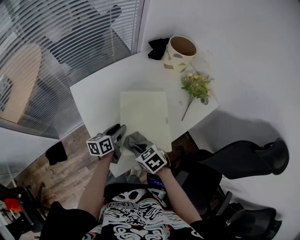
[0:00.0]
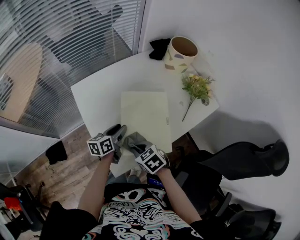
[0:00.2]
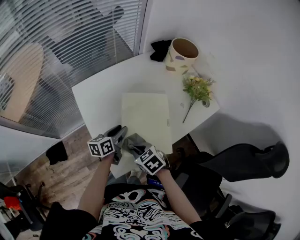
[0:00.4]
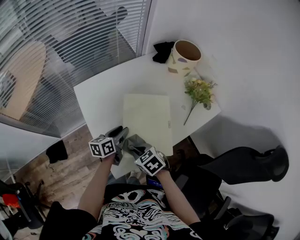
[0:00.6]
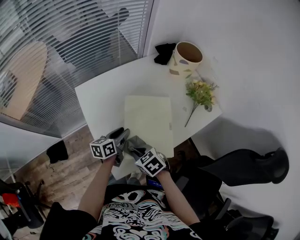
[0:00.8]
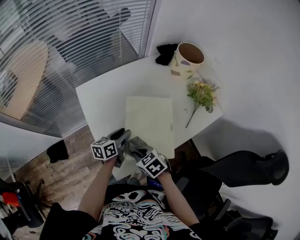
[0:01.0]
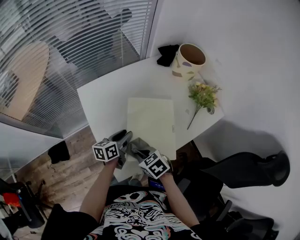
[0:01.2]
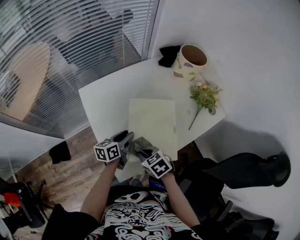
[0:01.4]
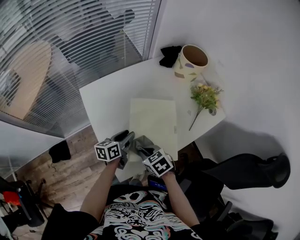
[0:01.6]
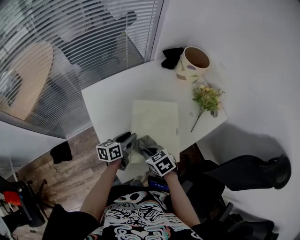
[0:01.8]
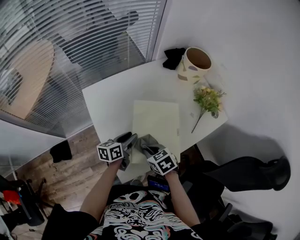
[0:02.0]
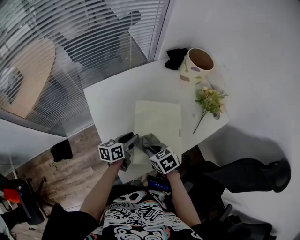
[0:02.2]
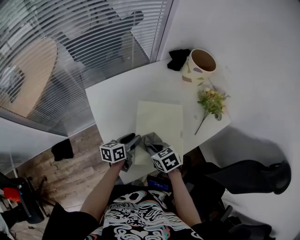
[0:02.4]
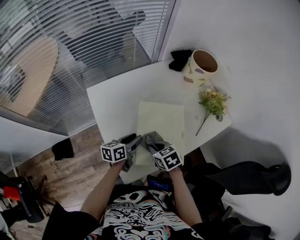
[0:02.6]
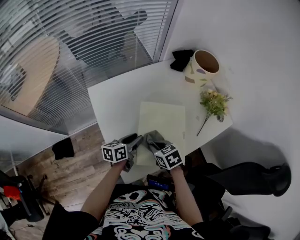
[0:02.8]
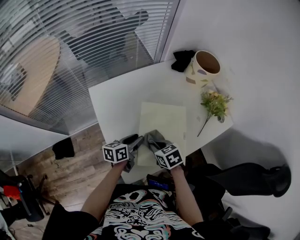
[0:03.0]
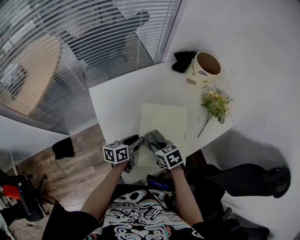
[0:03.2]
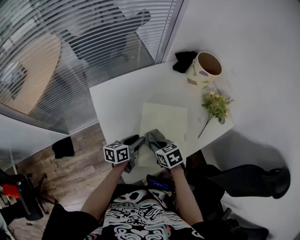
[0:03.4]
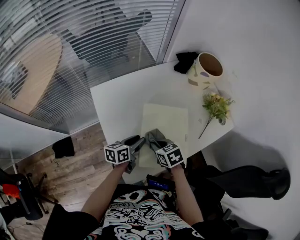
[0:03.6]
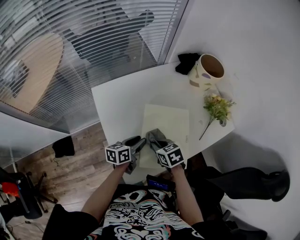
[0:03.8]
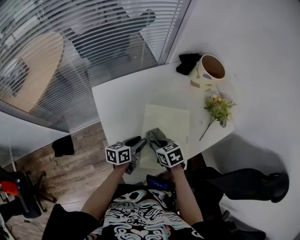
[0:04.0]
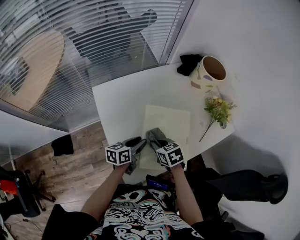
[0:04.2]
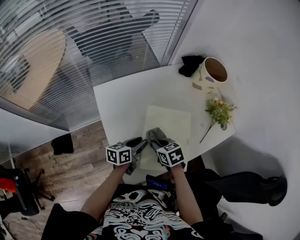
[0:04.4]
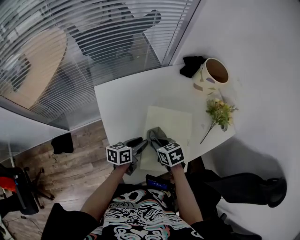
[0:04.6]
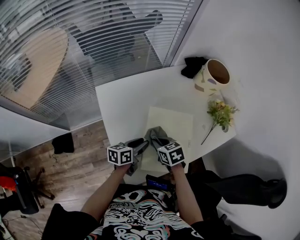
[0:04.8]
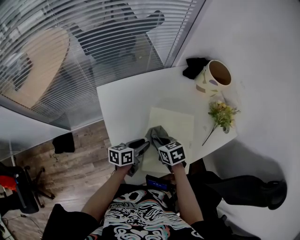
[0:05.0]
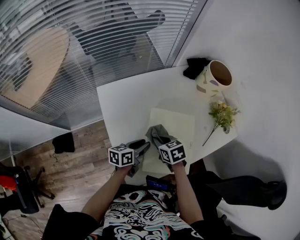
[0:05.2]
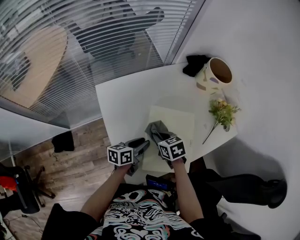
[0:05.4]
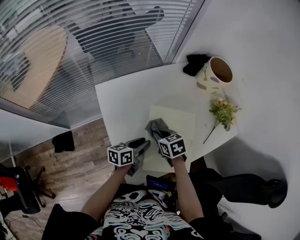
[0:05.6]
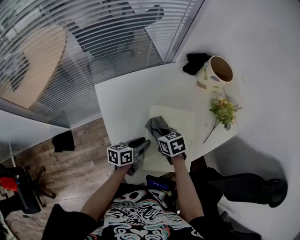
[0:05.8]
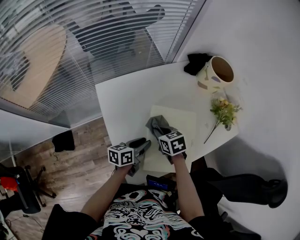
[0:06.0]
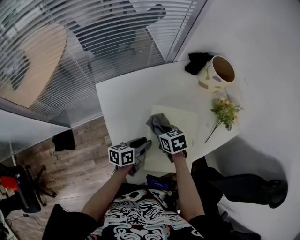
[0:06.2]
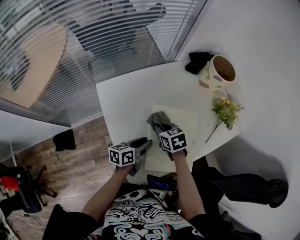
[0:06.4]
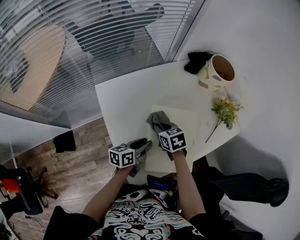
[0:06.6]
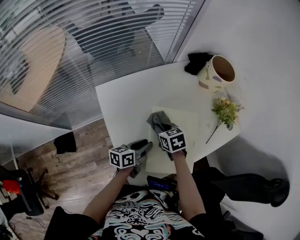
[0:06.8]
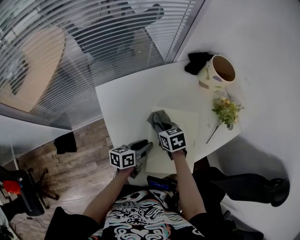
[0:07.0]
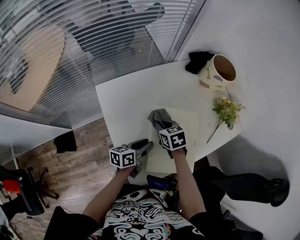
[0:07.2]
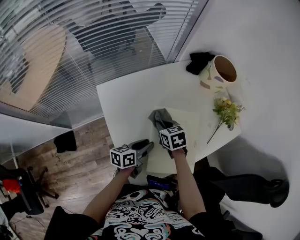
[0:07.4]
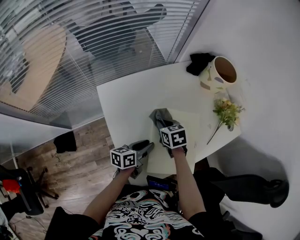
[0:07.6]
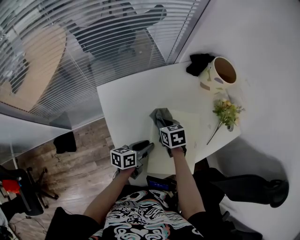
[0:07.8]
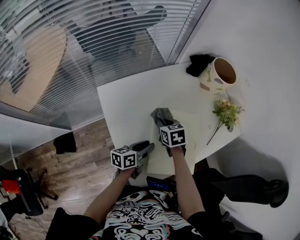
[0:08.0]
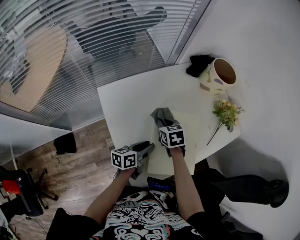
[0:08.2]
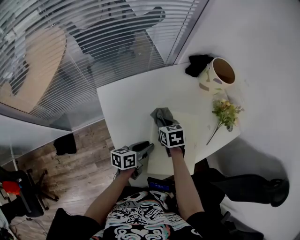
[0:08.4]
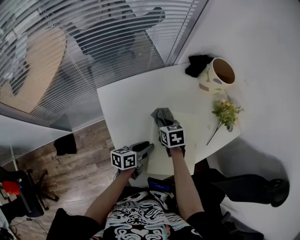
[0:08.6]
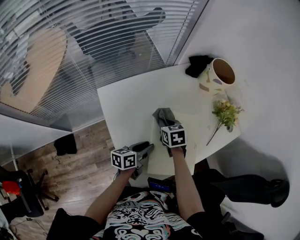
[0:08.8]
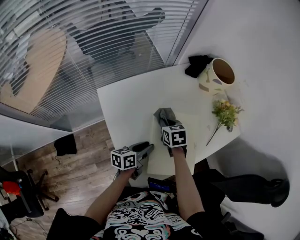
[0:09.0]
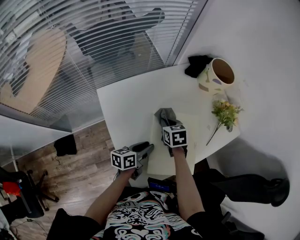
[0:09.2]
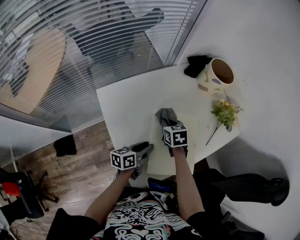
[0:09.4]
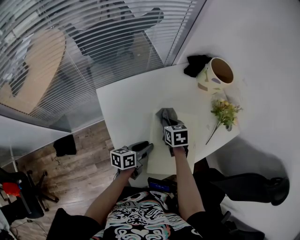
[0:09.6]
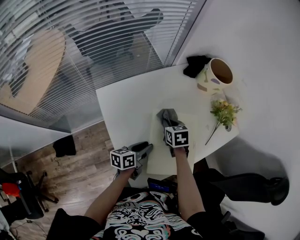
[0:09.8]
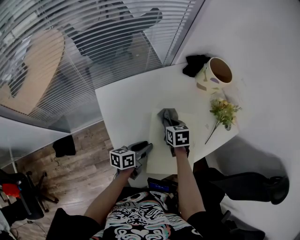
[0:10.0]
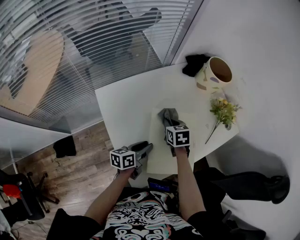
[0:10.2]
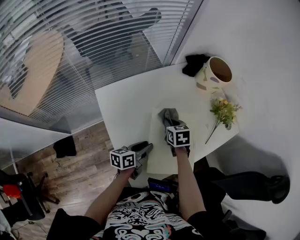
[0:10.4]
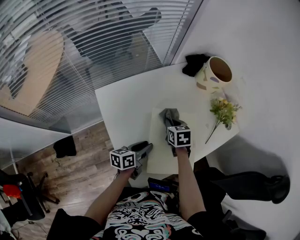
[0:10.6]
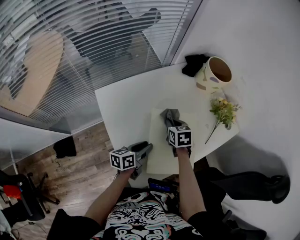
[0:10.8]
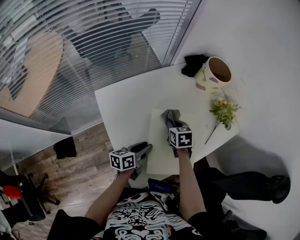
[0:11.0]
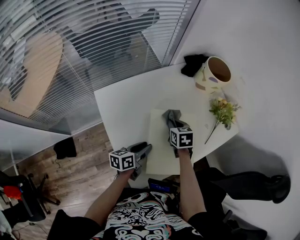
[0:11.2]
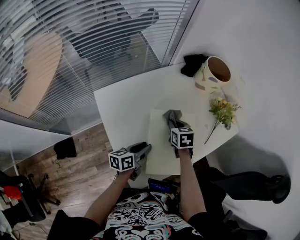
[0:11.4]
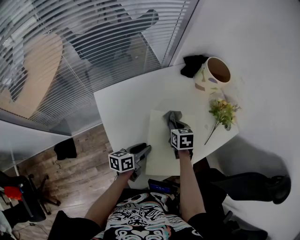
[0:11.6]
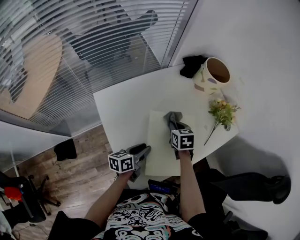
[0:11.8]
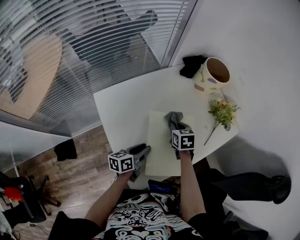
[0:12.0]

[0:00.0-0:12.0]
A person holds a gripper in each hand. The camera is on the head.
0:00.0 to 0:01.6: There are only small adjustments of the grippers.
0:01.6 to 0:03.0: The right gripper moves forward, about 5 cm.
0:03.0 to 0:04.4: There are only small adjustments of the grippers.
0:04.4 to 0:06.0: The right gripper moves forward, some 5 cm.
0:06.0 to 0:07.6: There are only small adjustments of the grippers.
0:07.6 to 0:10.4: The grippers make only small movements.
0:10.4 to 0:12.0: The grippers move only a little.

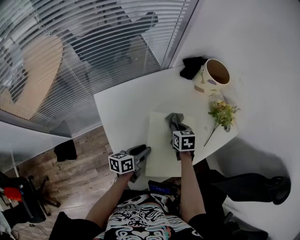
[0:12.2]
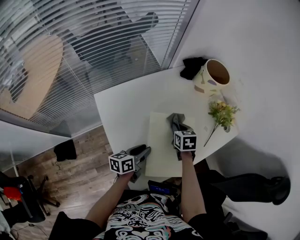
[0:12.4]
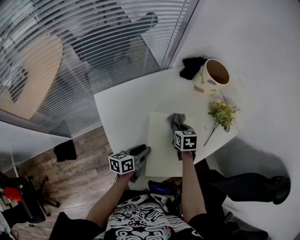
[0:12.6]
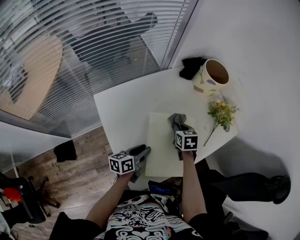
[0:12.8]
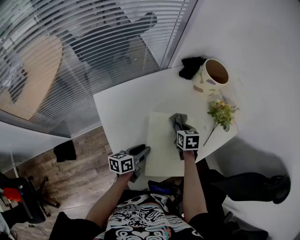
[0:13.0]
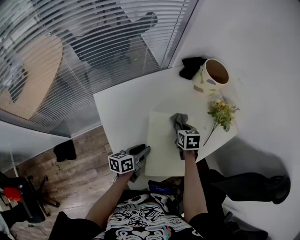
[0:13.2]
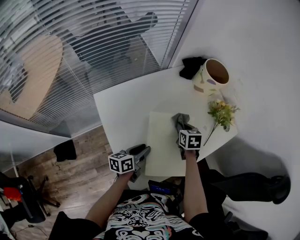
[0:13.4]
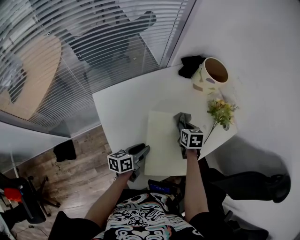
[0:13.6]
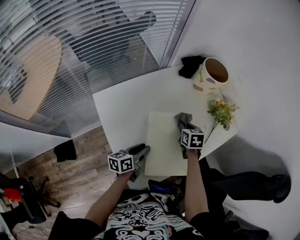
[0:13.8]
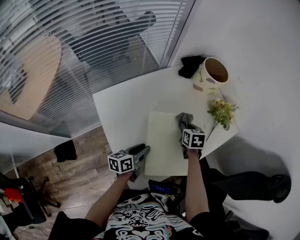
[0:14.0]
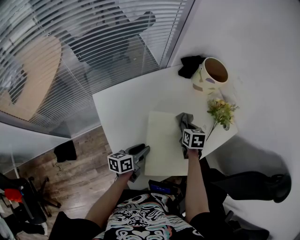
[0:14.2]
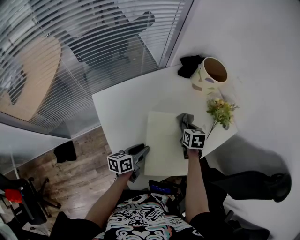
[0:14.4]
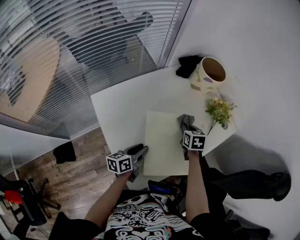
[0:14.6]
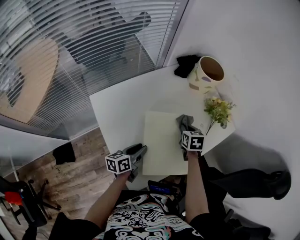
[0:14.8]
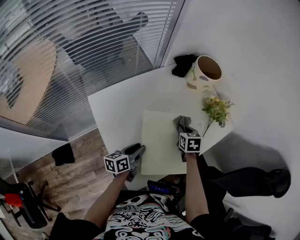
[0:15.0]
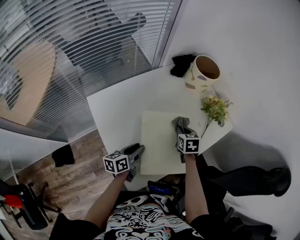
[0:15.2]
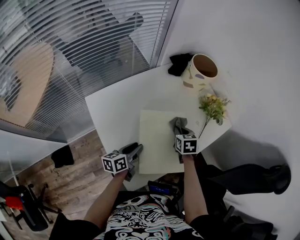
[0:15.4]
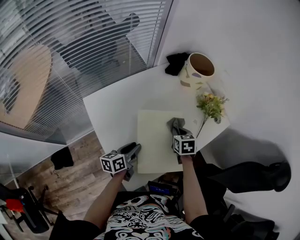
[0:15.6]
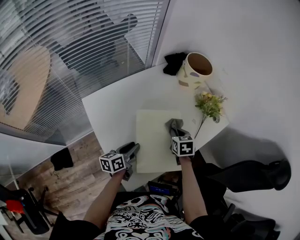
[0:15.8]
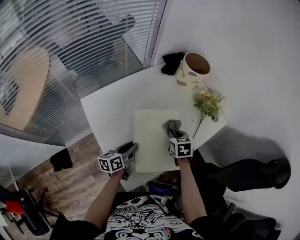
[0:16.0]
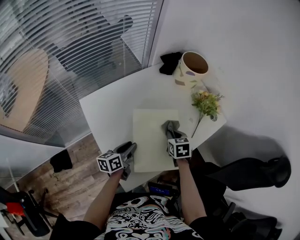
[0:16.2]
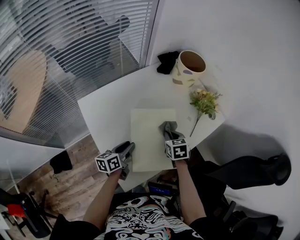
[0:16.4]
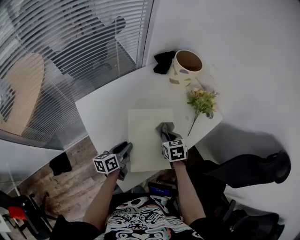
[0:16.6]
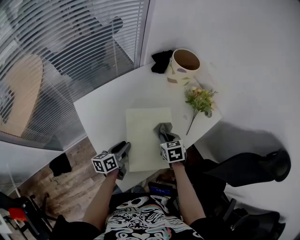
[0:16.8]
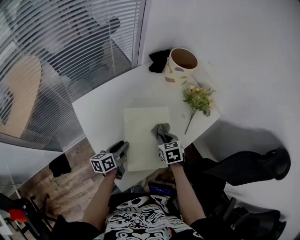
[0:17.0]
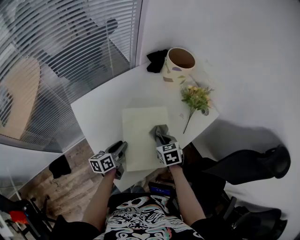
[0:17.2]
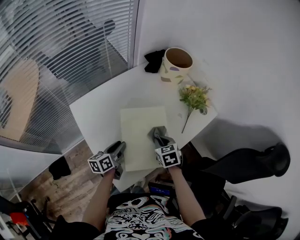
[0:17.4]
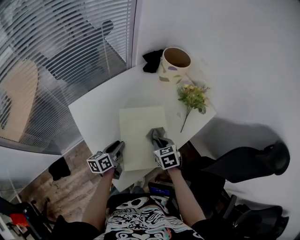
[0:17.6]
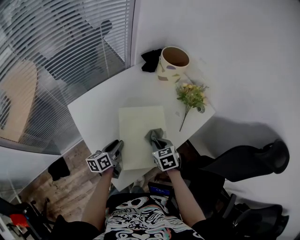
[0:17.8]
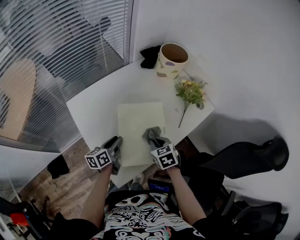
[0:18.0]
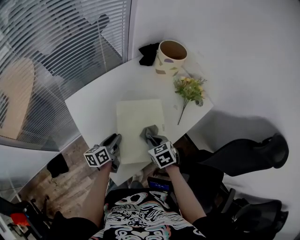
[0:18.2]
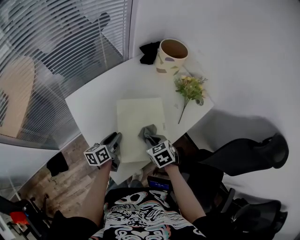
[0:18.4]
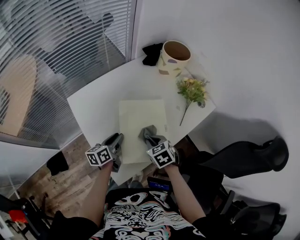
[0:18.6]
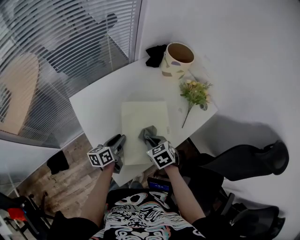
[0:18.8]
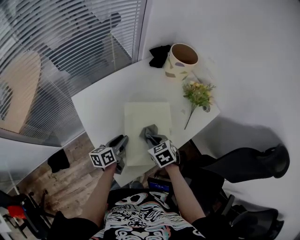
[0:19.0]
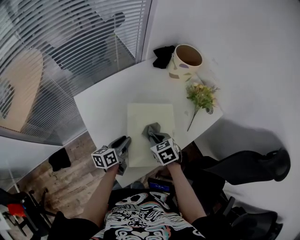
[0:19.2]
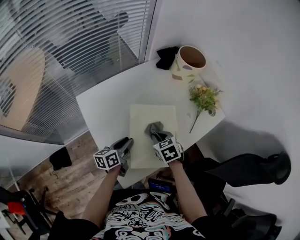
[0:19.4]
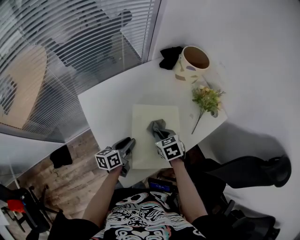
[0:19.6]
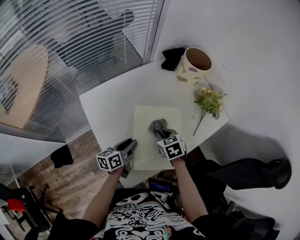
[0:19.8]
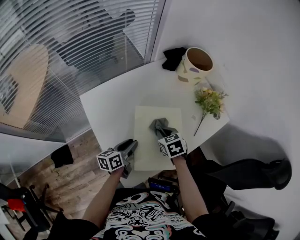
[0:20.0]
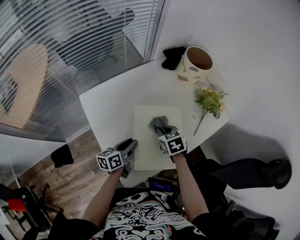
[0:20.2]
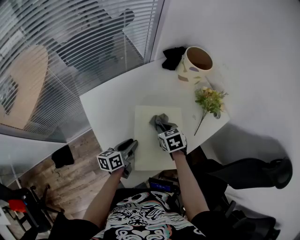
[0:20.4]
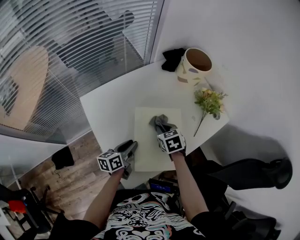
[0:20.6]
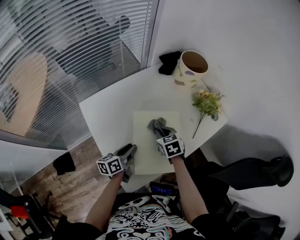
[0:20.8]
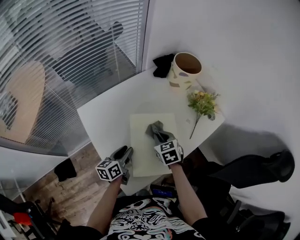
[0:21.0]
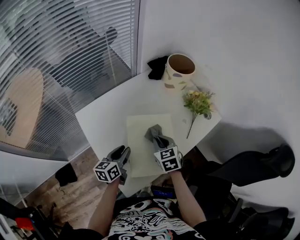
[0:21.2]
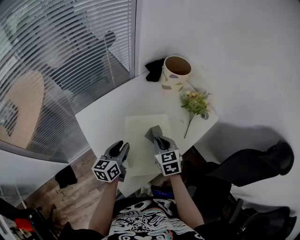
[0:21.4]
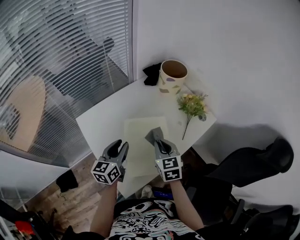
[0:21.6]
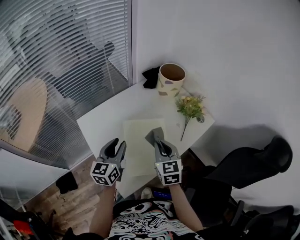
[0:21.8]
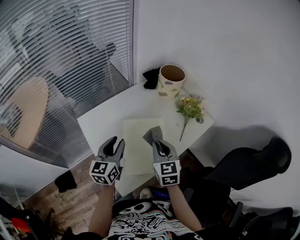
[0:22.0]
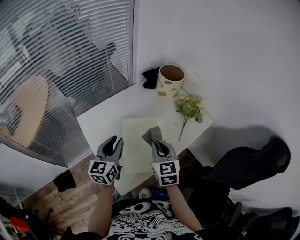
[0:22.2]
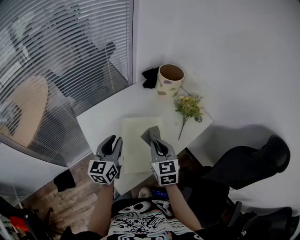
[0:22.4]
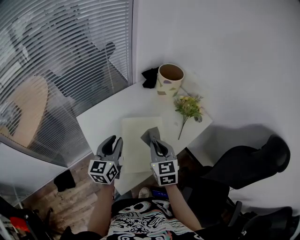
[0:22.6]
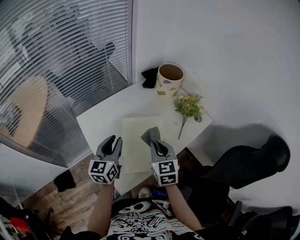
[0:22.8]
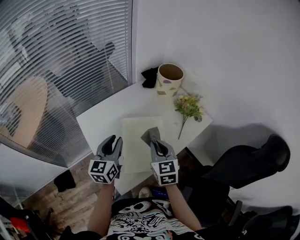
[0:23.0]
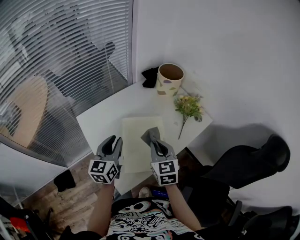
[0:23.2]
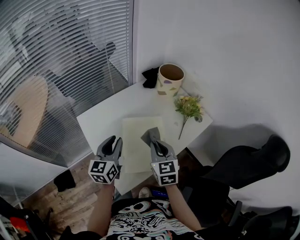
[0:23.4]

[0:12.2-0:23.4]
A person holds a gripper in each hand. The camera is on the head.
0:12.2 to 0:13.8: The right gripper goes roughly 5 cm to the right.
0:13.8 to 0:15.4: There are only small adjustments of the grippers.
0:15.4 to 0:17.0: The right gripper travels backward by about 5 cm.
0:17.0 to 0:18.6: The right gripper heads backward, covering about 5 cm.
0:18.6 to 0:20.2: The right gripper is displaced forward by some 10 cm.
0:20.2 to 0:21.8: The right gripper heads upward and backward, covering some 15 cm, and angles its fingers upward, by roughly 30 degrees, while the left gripper is displaced upward by some 15 cm, and swivels about 40 degrees.
0:21.8 to 0:23.4: The grippers stay close to where they were, moving slightly.

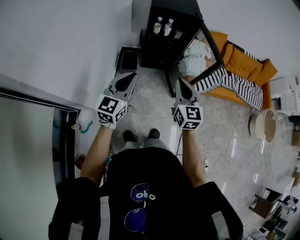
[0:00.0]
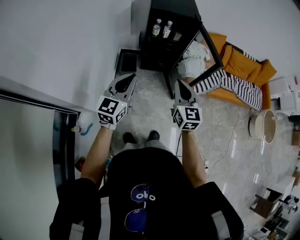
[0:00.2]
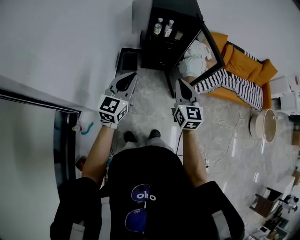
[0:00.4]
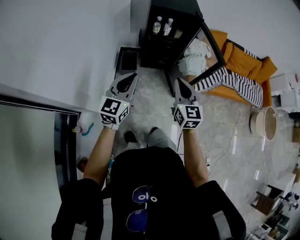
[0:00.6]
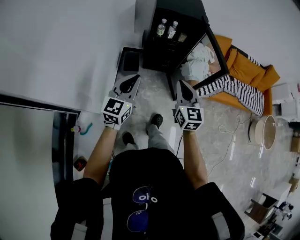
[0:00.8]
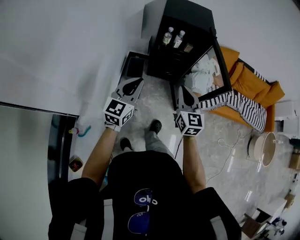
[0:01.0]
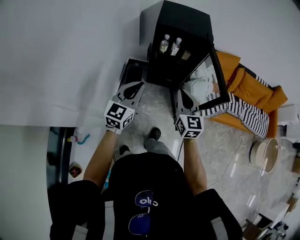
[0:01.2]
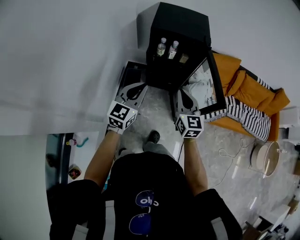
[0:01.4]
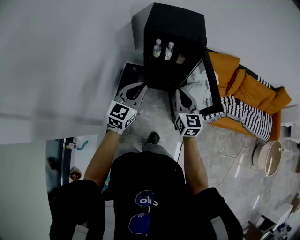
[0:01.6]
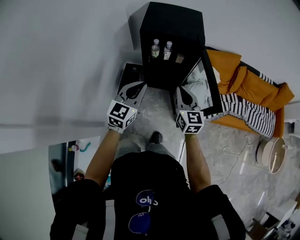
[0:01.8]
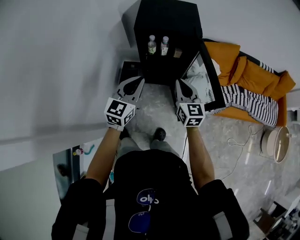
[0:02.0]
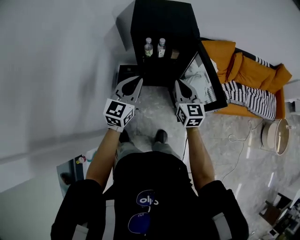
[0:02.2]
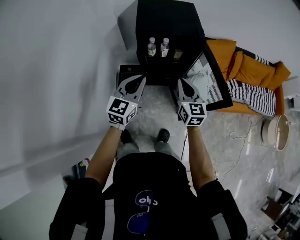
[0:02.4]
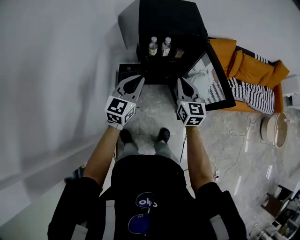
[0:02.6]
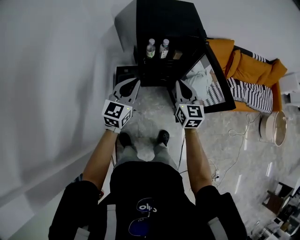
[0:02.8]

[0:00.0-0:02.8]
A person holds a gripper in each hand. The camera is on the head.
0:00.0 to 0:01.4: Both grippers travel together forward, some 20 cm.
0:01.4 to 0:02.8: The right gripper shifts about 10 cm forward, while the left gripper goes roughly 15 cm forward and to the left.
